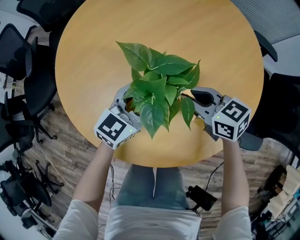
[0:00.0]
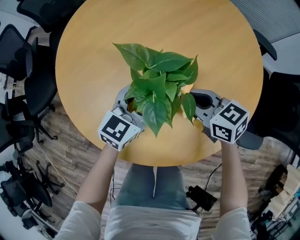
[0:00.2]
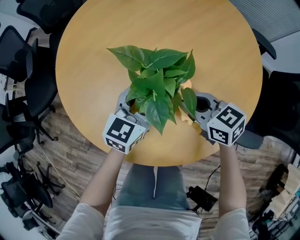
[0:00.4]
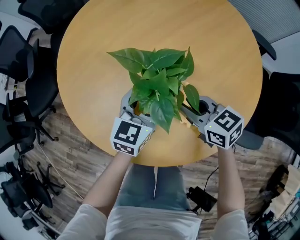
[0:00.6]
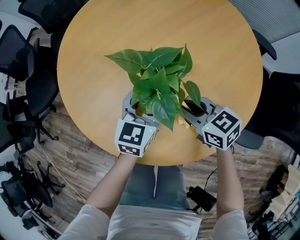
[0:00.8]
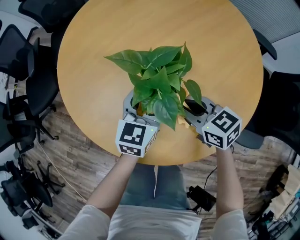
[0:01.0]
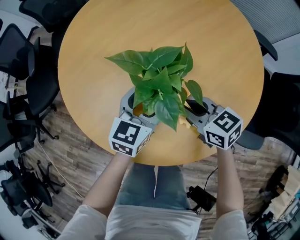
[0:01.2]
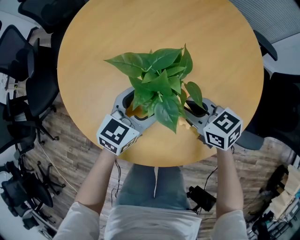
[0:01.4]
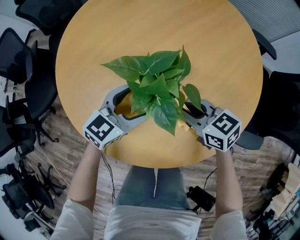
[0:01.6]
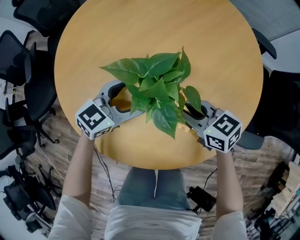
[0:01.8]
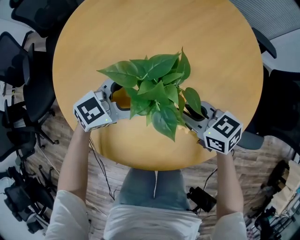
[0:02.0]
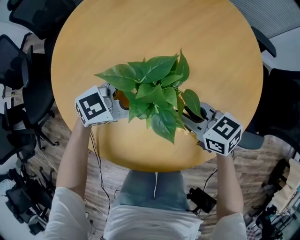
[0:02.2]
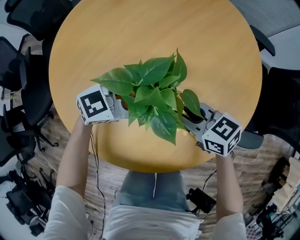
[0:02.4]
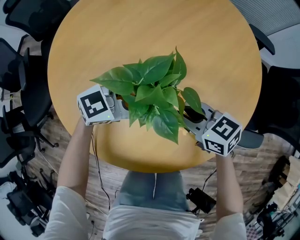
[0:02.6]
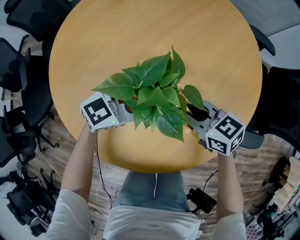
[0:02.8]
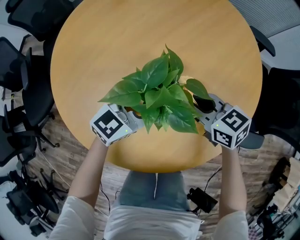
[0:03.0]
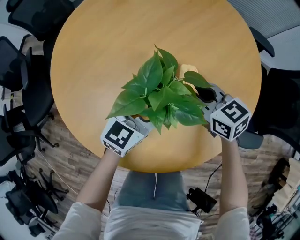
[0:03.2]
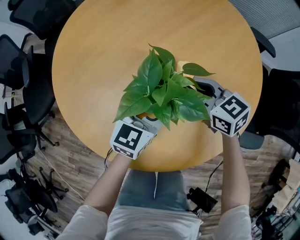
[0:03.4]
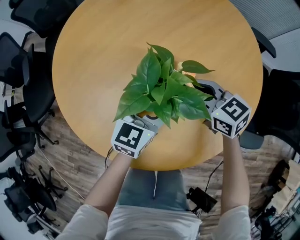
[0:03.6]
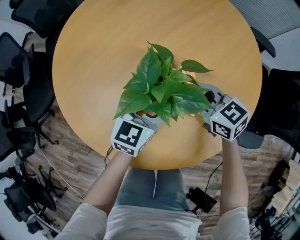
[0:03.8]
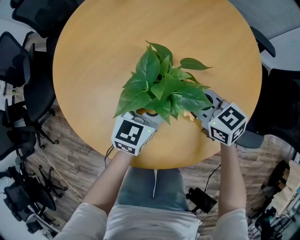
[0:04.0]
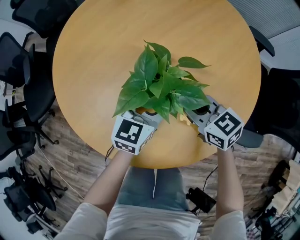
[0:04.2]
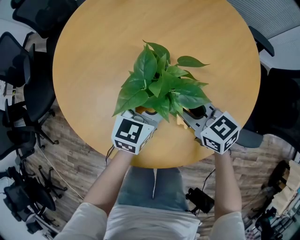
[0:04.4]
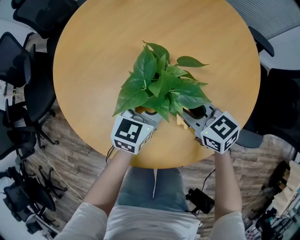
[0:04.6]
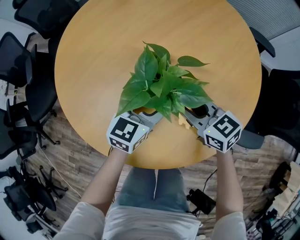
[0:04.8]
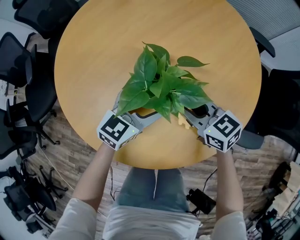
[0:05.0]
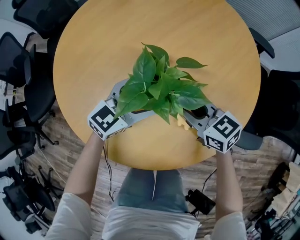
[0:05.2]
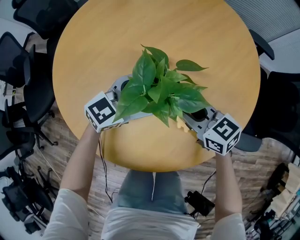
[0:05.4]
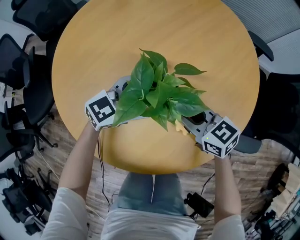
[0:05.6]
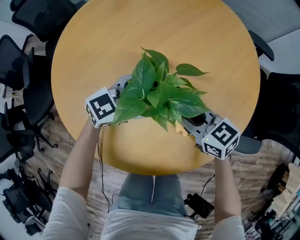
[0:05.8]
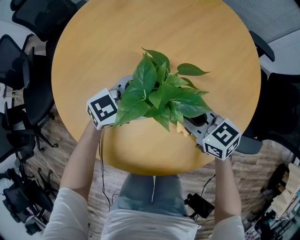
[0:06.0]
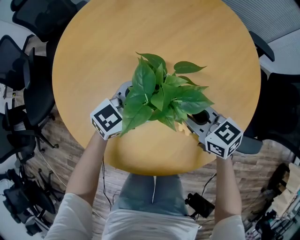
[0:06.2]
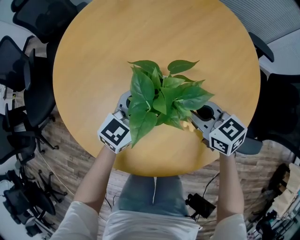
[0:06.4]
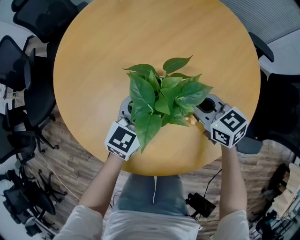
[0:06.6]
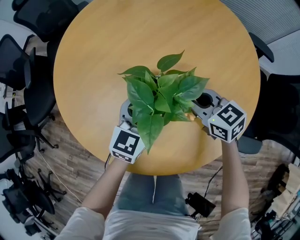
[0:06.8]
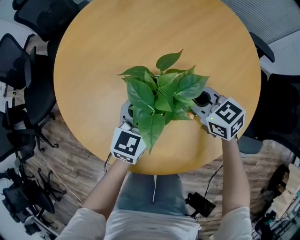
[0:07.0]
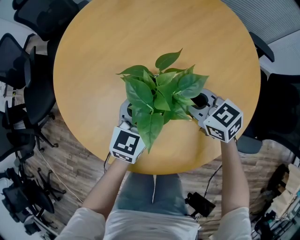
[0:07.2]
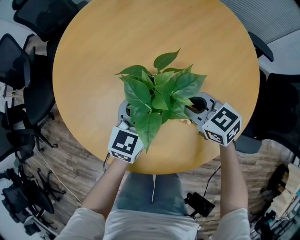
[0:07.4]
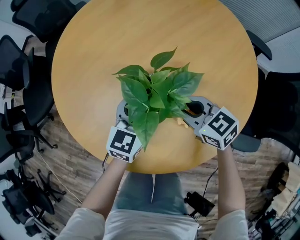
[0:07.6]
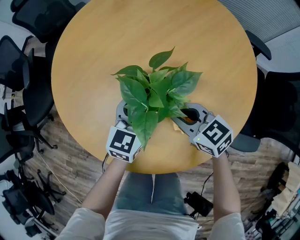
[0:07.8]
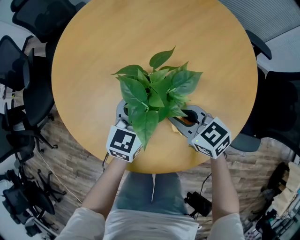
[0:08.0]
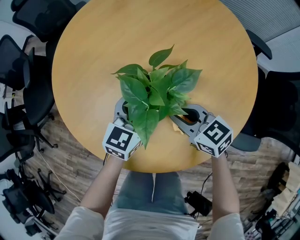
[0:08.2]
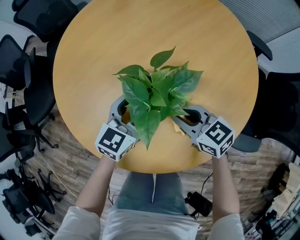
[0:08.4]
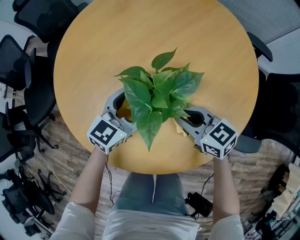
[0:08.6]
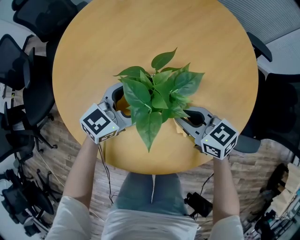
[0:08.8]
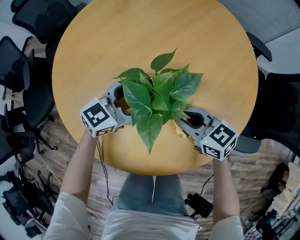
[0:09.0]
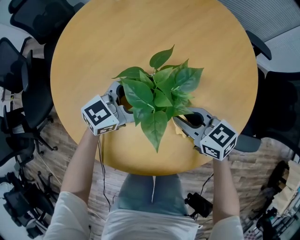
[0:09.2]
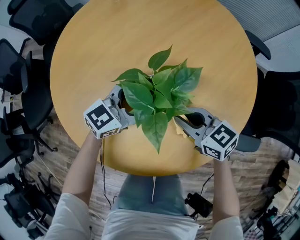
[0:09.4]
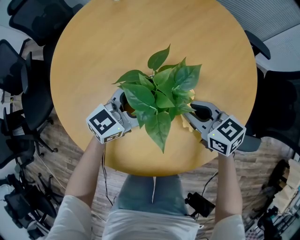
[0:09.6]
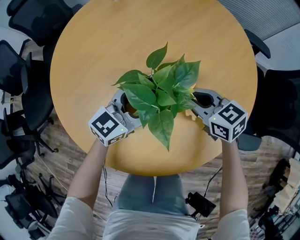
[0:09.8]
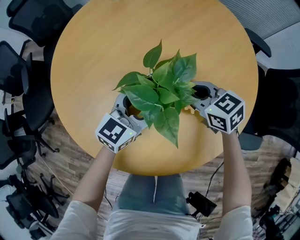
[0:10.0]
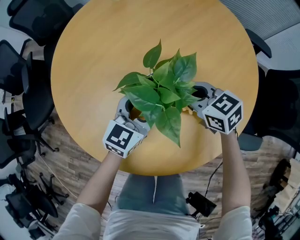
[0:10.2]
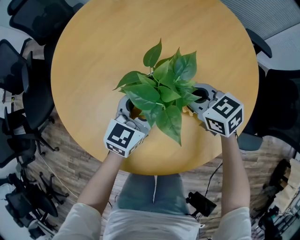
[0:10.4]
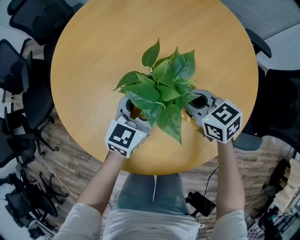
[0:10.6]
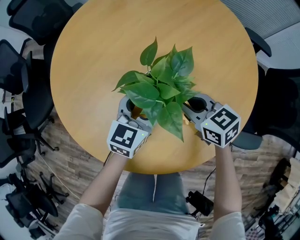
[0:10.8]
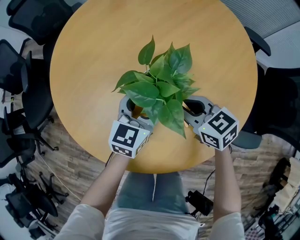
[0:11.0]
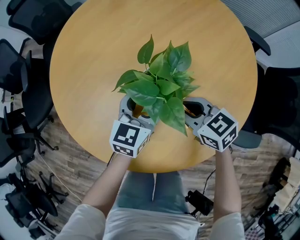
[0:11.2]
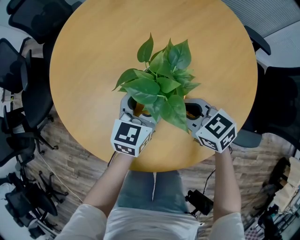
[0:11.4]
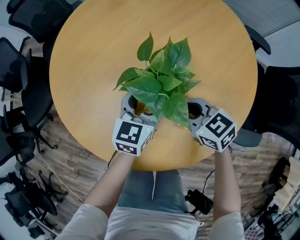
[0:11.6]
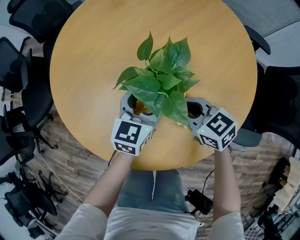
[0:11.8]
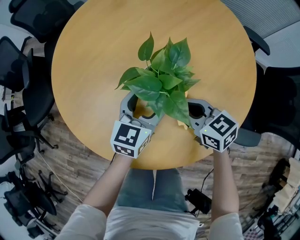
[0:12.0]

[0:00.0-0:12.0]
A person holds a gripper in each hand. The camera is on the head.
0:01.6 to 0:03.0: The left gripper ends up about 5 cm from where it was.
0:03.0 to 0:04.4: The left gripper turns by roughly 30 degrees.
0:04.4 to 0:06.0: The left gripper swivels some 40 degrees.
0:06.0 to 0:07.6: The left gripper rotates some 40 degrees.
0:07.6 to 0:09.0: The left gripper turns by some 30 degrees.
0:09.0 to 0:10.4: The left gripper swivels some 20 degrees. Meanwhile the right gripper shifts by some 5 cm.
0:10.4 to 0:12.0: The right gripper is displaced backward by roughly 5 cm.

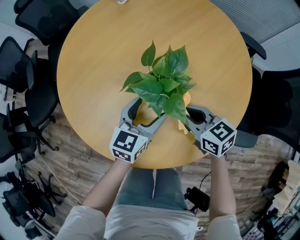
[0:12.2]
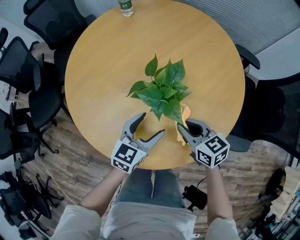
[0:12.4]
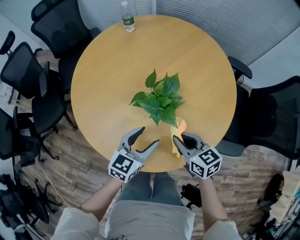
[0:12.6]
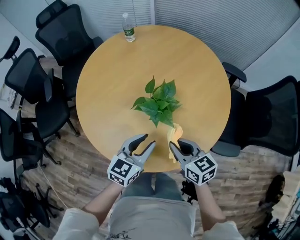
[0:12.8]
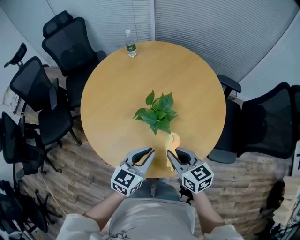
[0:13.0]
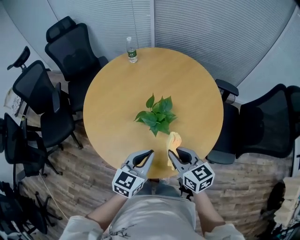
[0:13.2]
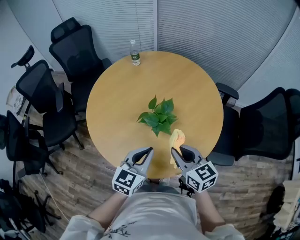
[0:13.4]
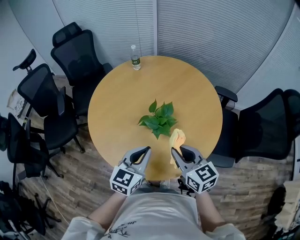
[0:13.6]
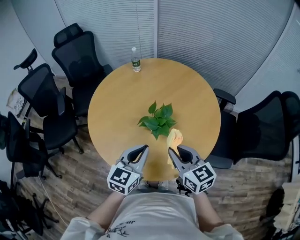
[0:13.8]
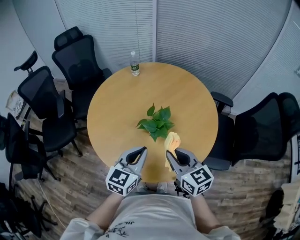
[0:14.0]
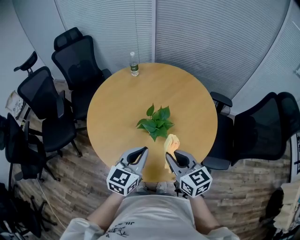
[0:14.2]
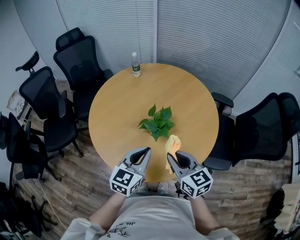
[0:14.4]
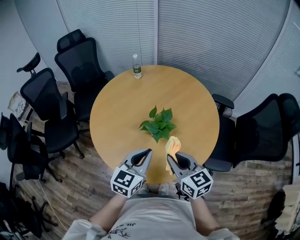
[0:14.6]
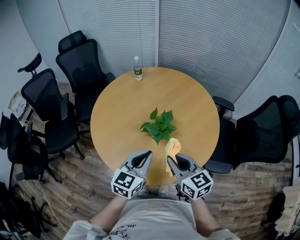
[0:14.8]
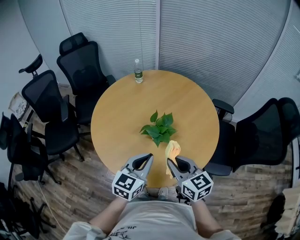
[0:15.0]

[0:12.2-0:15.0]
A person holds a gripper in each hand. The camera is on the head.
0:12.2 to 0:13.6: The left gripper travels upward and backward by approximately 25 cm, and closes up. Meanwhile the right gripper heads upward, covering some 25 cm.
0:13.6 to 0:15.0: The grippers make only small movements.

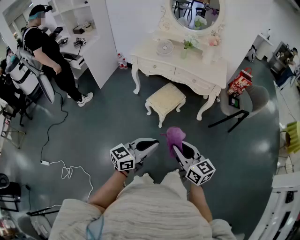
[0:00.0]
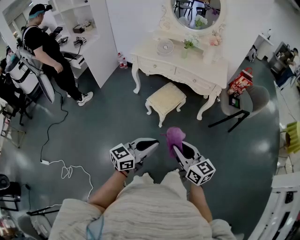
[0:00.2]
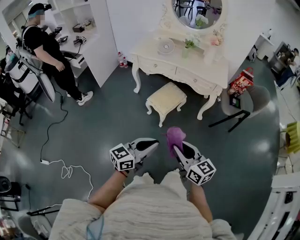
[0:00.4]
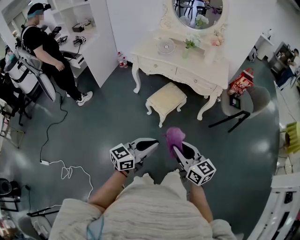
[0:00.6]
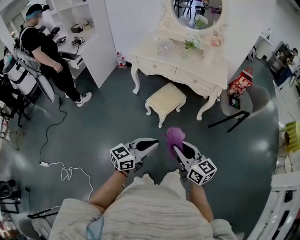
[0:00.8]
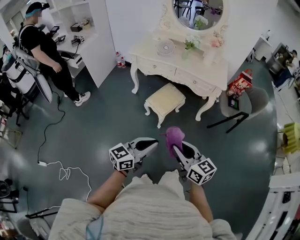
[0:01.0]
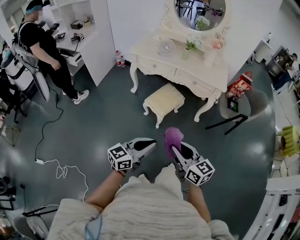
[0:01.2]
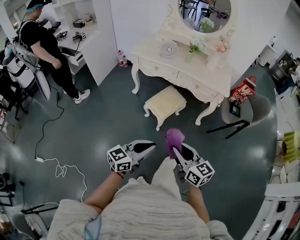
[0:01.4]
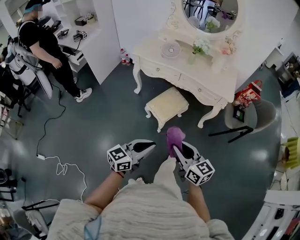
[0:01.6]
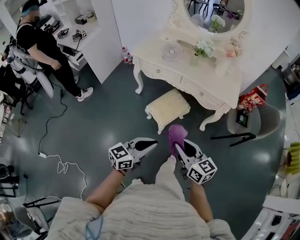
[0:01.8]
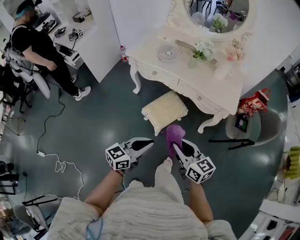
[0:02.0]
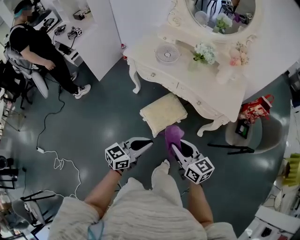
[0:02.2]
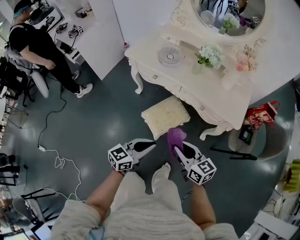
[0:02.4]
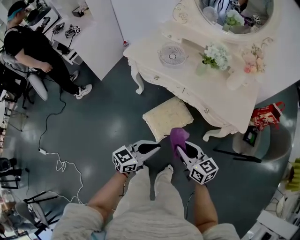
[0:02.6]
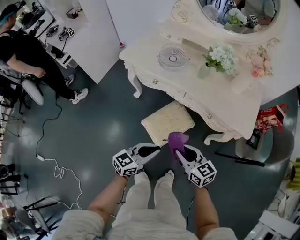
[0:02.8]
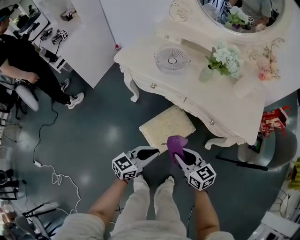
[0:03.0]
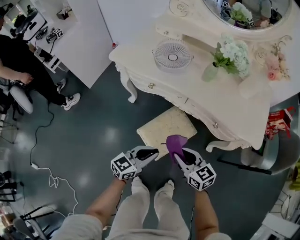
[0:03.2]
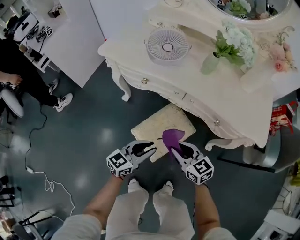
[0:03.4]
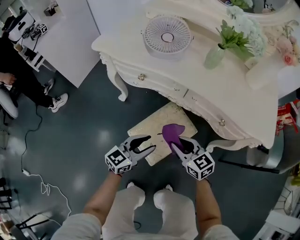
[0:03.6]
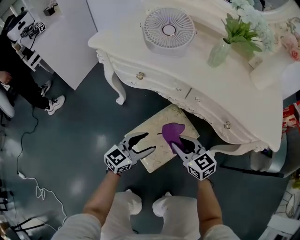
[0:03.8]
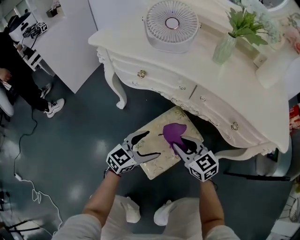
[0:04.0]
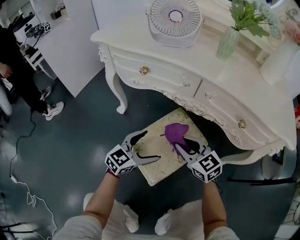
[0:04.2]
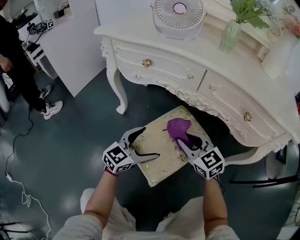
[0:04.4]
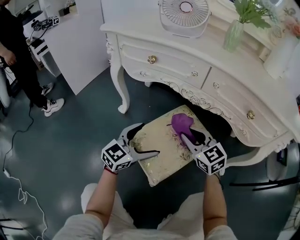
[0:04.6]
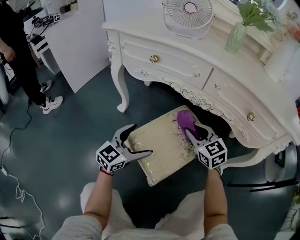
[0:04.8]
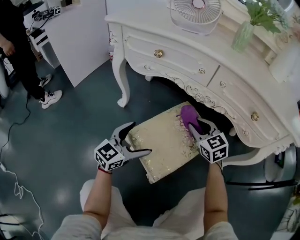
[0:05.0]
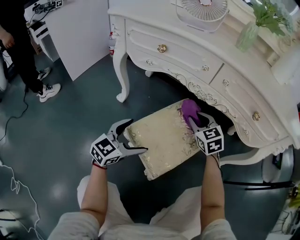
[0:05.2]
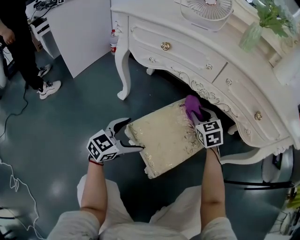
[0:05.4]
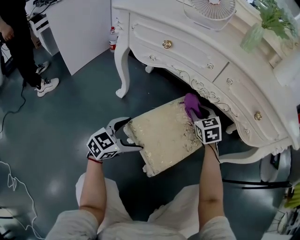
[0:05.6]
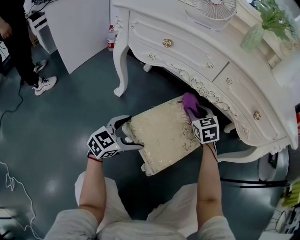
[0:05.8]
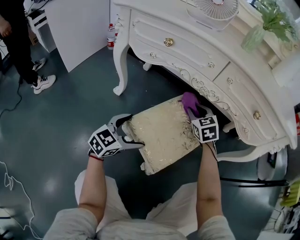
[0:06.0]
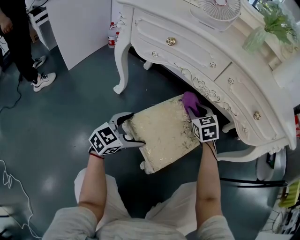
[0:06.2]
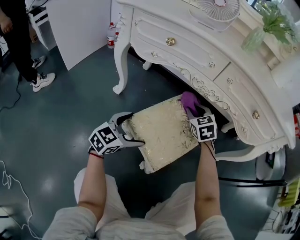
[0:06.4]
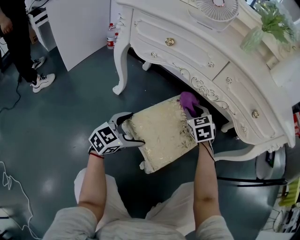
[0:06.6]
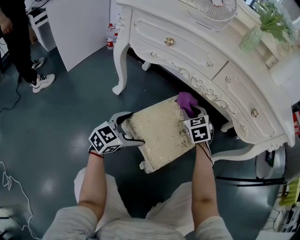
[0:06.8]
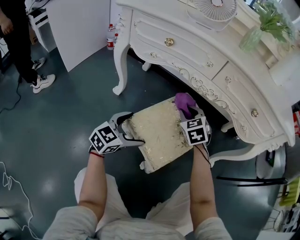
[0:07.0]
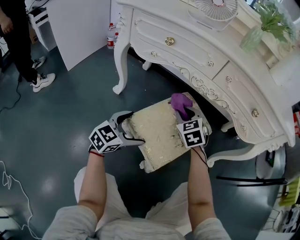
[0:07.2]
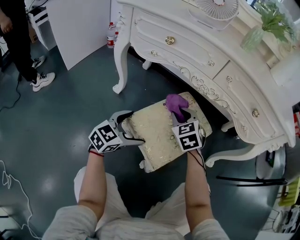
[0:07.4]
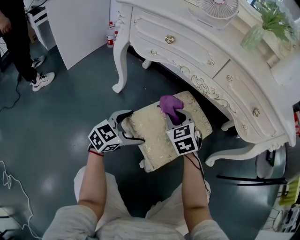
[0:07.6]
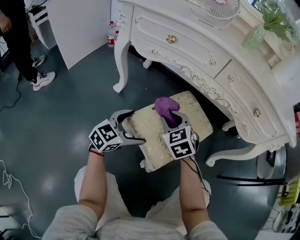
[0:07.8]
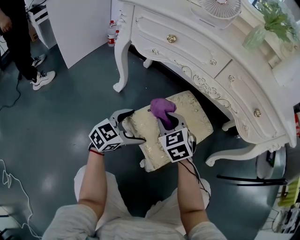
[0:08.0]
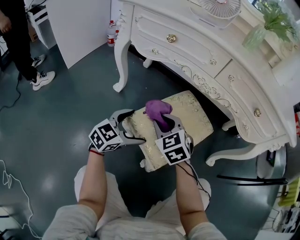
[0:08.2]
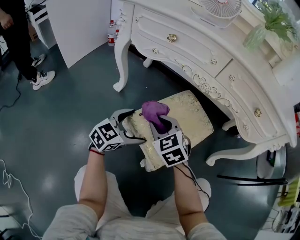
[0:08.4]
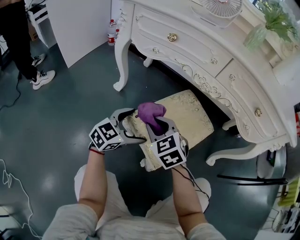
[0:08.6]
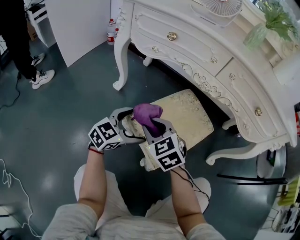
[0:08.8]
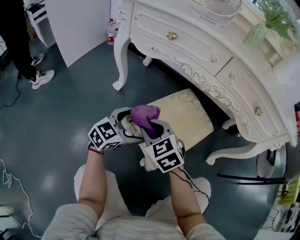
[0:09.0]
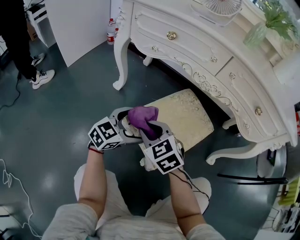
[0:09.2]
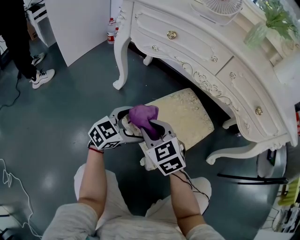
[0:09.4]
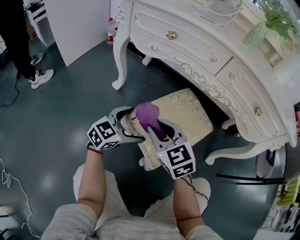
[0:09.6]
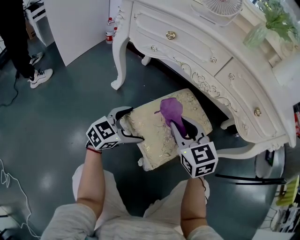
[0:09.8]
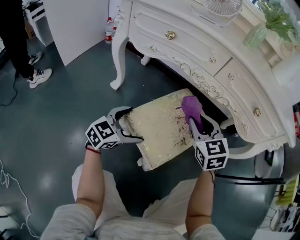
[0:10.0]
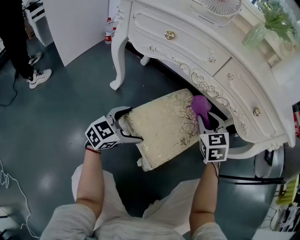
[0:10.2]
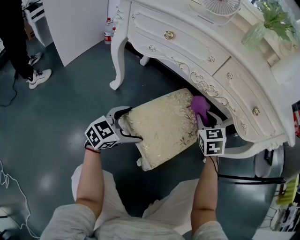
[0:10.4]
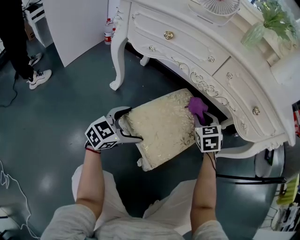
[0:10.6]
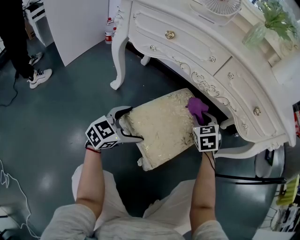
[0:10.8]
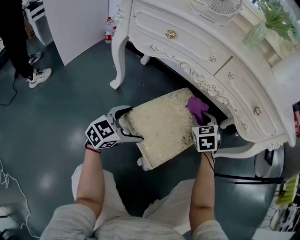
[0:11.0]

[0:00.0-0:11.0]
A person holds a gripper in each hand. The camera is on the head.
0:00.0 to 0:01.6: Both grippers travel together forward, about 15 cm.
0:01.6 to 0:03.2: The grippers both shift forward and downward by approximately 40 cm.
0:03.2 to 0:04.8: The left gripper travels downward by about 25 cm, turns by about 20 degrees, and opens up, while the right gripper heads downward and forward, covering some 30 cm, and changes its angle by approximately 30 degrees.
0:04.8 to 0:06.2: The left gripper goes some 5 cm downward. The right gripper goes roughly 5 cm forward, and turns by roughly 20 degrees.
0:06.2 to 0:07.8: The right gripper is displaced backward and to the left by some 15 cm.
0:07.8 to 0:09.4: The right gripper moves backward and to the left, about 10 cm.
0:09.4 to 0:11.0: The right gripper heads forward and to the right, covering about 25 cm, and turns by about 30 degrees.
